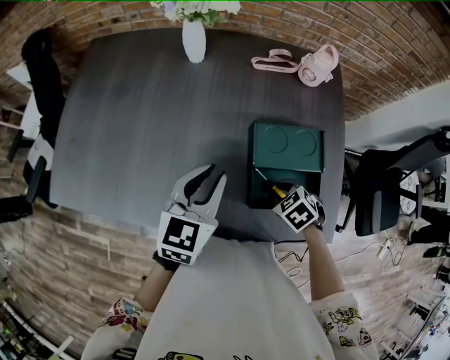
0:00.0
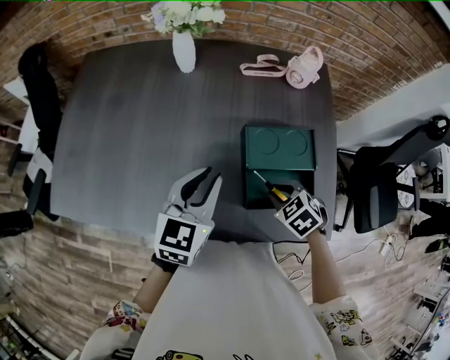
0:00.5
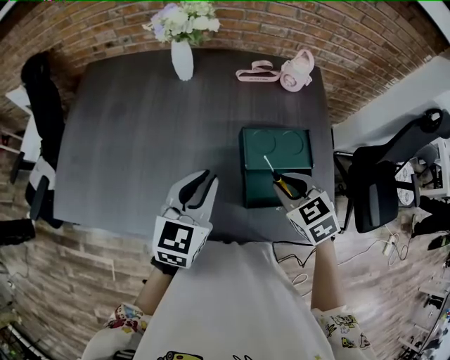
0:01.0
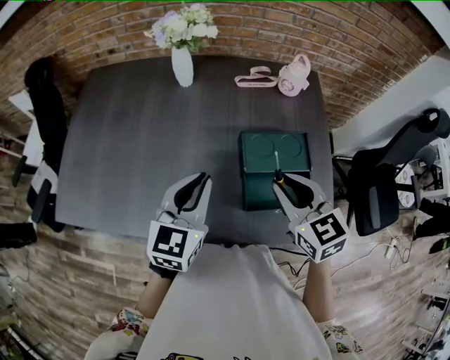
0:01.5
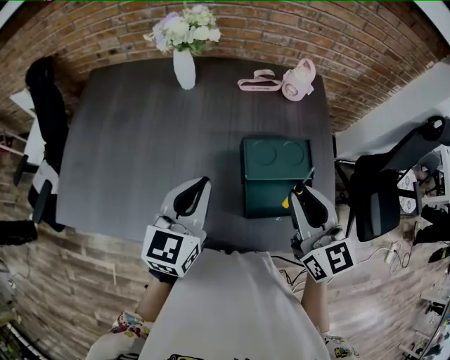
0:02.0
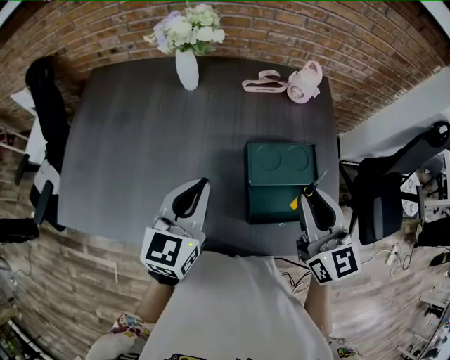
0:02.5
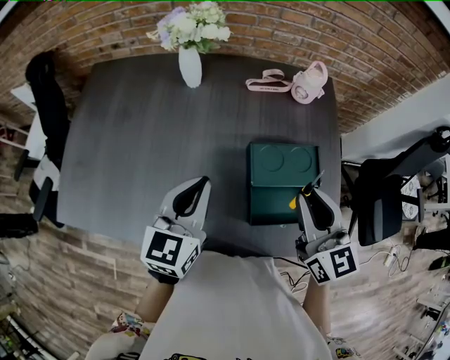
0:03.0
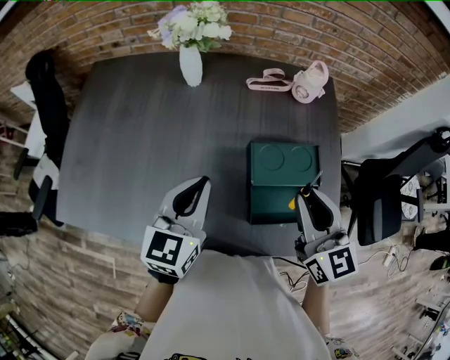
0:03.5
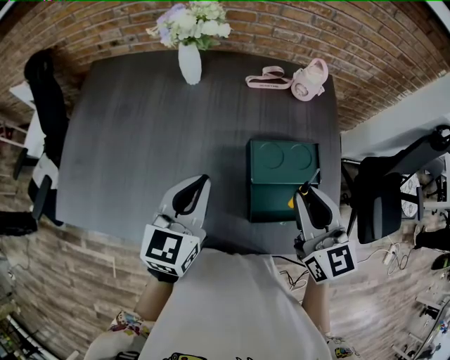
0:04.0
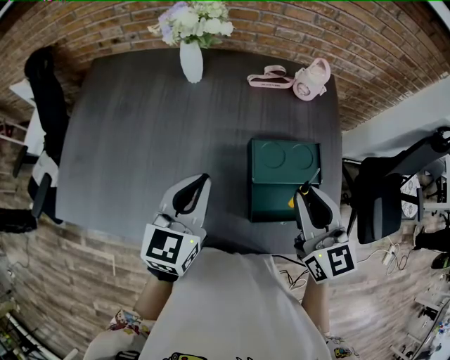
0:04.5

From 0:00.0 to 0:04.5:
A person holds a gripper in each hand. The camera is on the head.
From 0:00.0 to 0:02.0: The left gripper moves upward, roughly 5 cm. The right gripper heads upward, covering some 25 cm, and tilts its fingers approximately 60 degrees upward.
From 0:02.0 to 0:04.5: There are only small adjustments of the grippers.

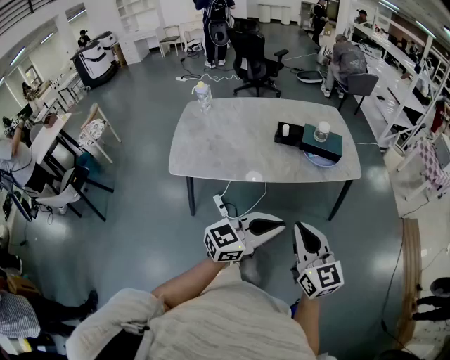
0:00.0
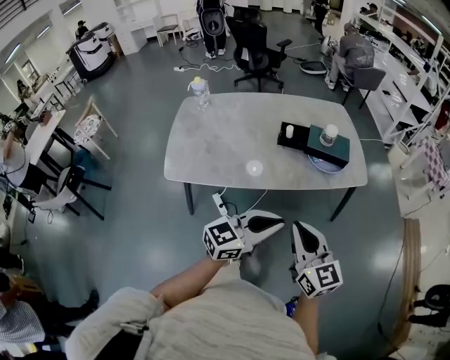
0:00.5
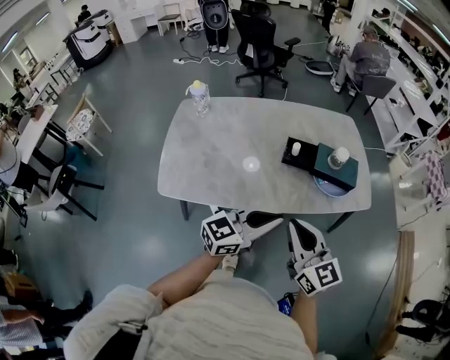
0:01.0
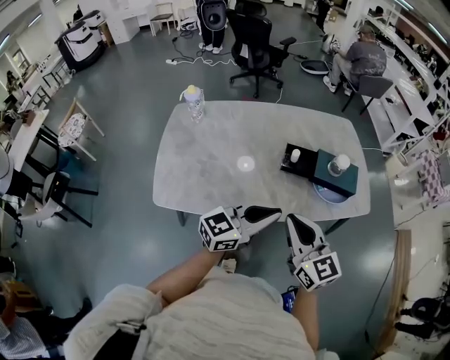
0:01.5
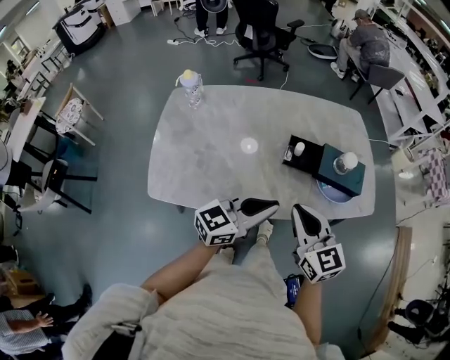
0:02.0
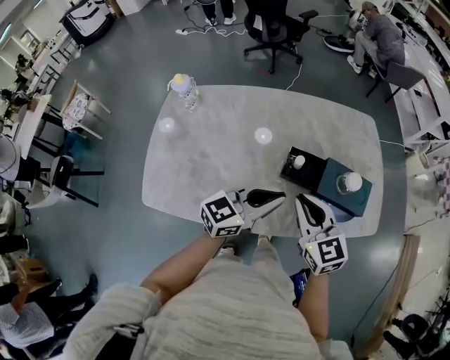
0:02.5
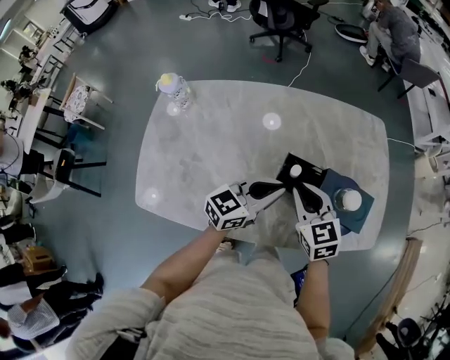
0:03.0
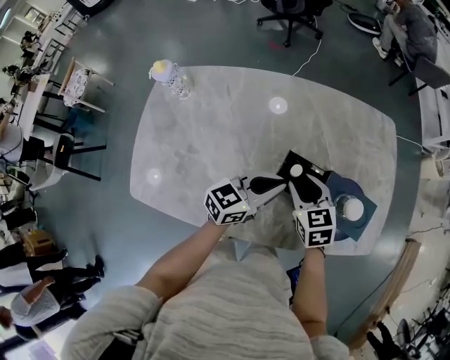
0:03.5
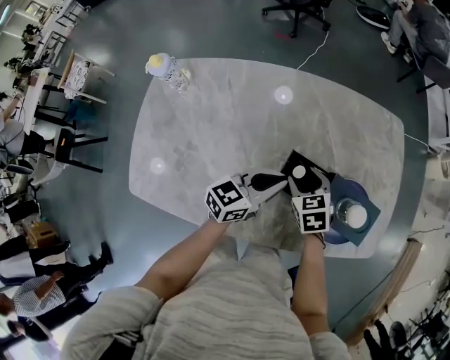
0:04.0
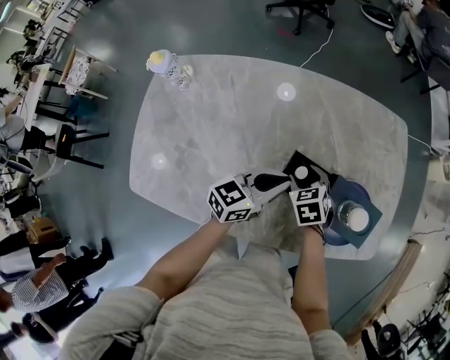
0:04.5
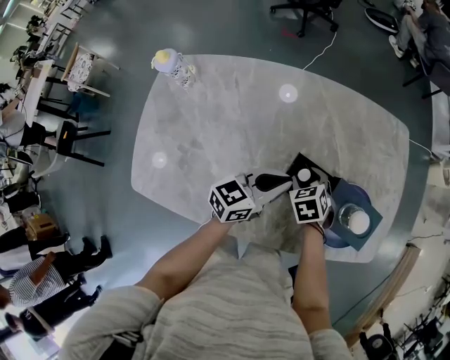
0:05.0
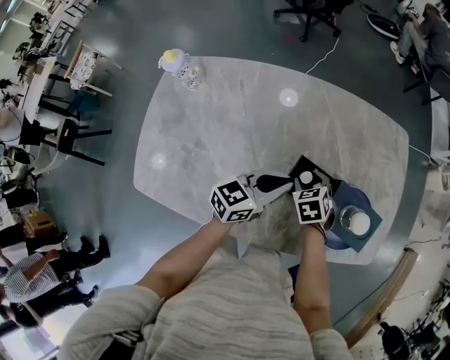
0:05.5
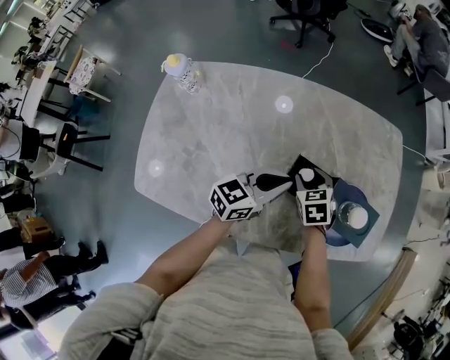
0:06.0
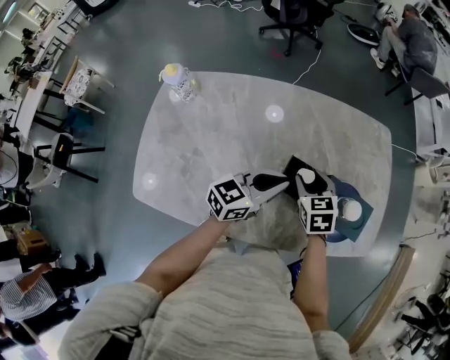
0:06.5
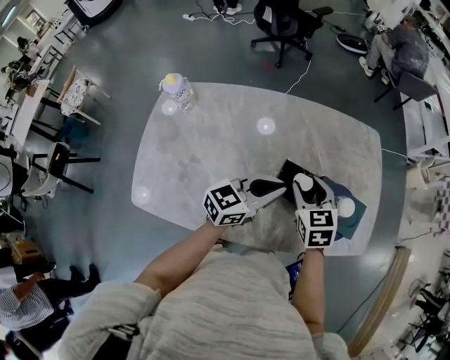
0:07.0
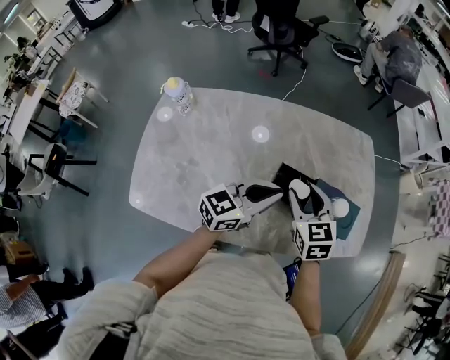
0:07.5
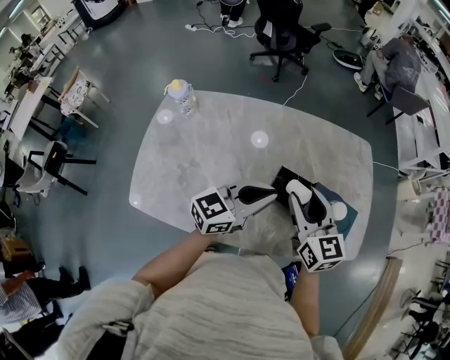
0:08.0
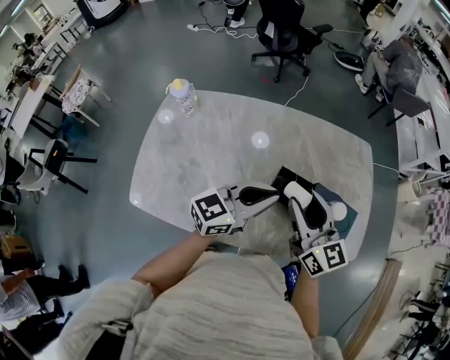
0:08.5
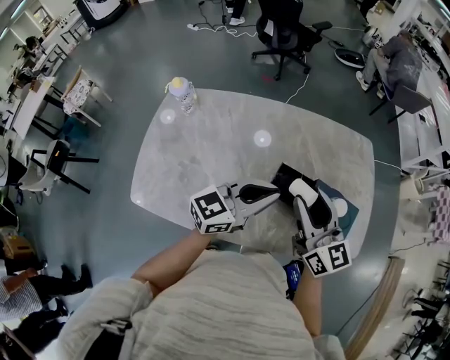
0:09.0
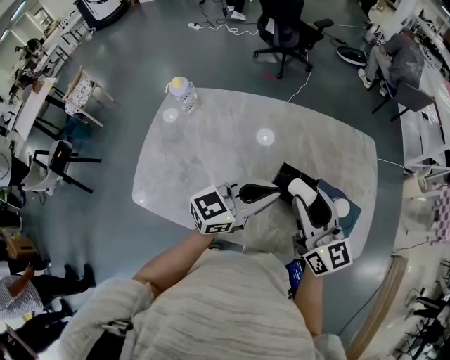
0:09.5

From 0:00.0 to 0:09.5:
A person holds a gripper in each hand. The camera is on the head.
From 0:00.0 to 0:02.0: The grippers both shift forward and to the left by approximately 35 cm.
From 0:02.0 to 0:04.0: Both grippers travel together forward and downward, some 35 cm. The left gripper turns by approximately 20 degrees. The right gripper tilts its fingers about 40 degrees downward, and opens.
From 0:04.0 to 0:05.5: The grippers move only a little.
From 0:05.5 to 0:07.5: The right gripper travels upward by roughly 20 cm, and tilts its fingers some 30 degrees upward. The left gripper is displaced upward and backward by approximately 15 cm.
From 0:07.5 to 0:09.5: The right gripper travels upward by some 10 cm, and tilts its fingers approximately 30 degrees upward.

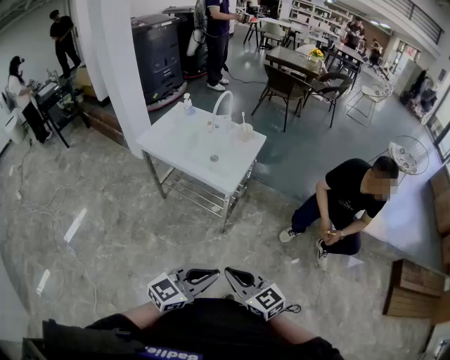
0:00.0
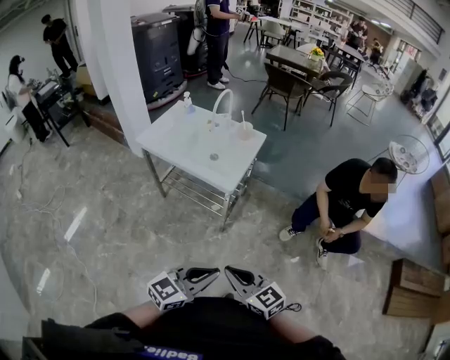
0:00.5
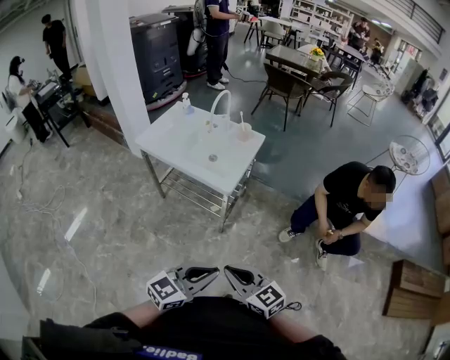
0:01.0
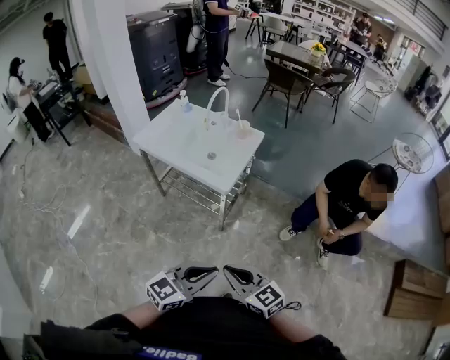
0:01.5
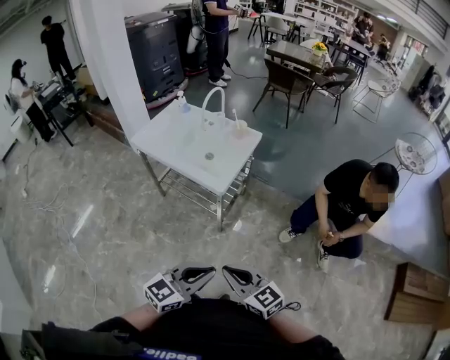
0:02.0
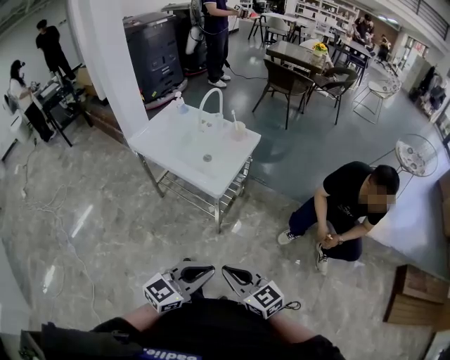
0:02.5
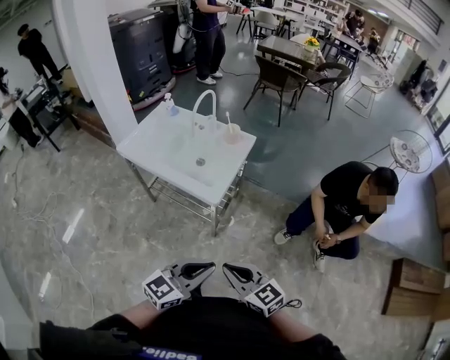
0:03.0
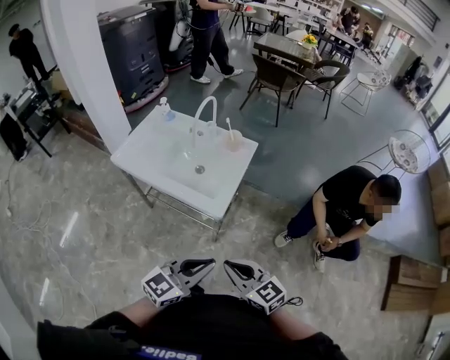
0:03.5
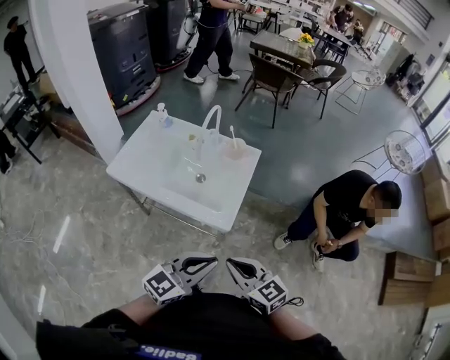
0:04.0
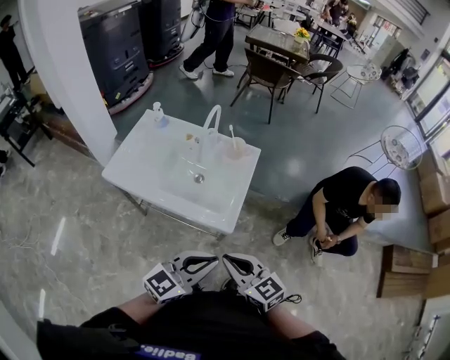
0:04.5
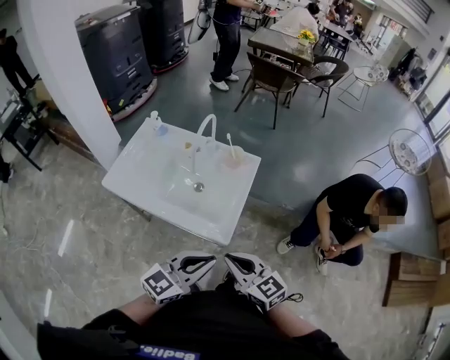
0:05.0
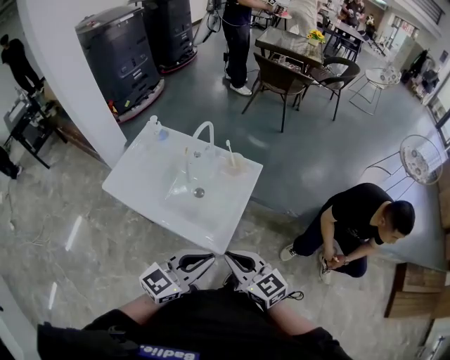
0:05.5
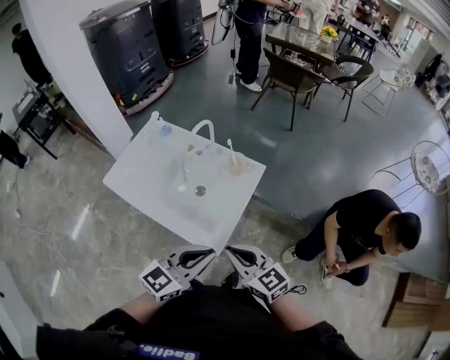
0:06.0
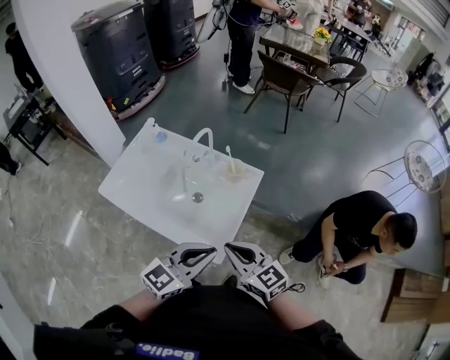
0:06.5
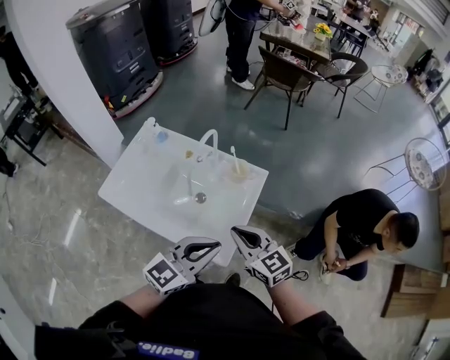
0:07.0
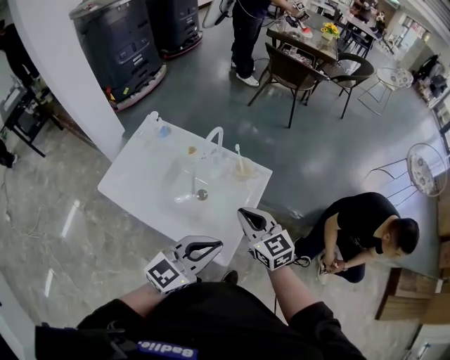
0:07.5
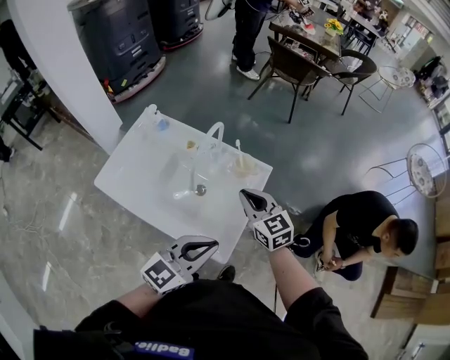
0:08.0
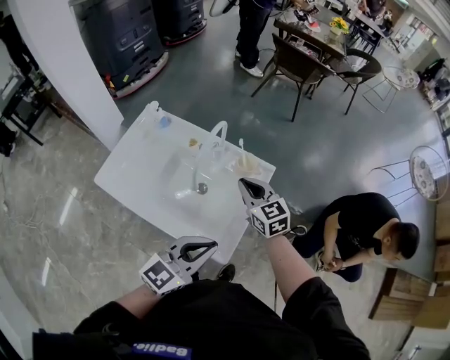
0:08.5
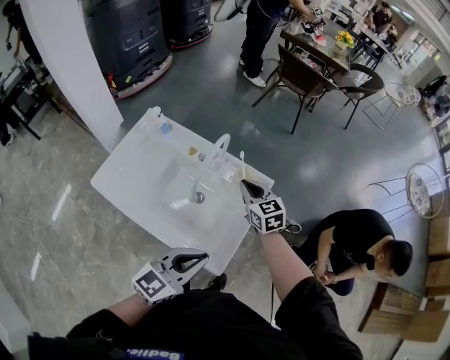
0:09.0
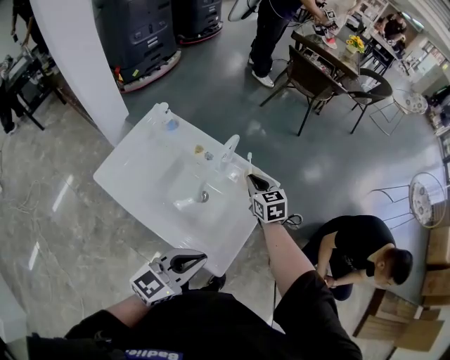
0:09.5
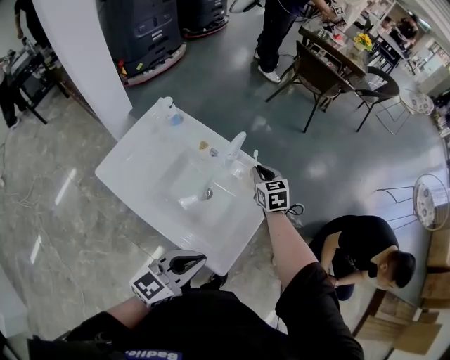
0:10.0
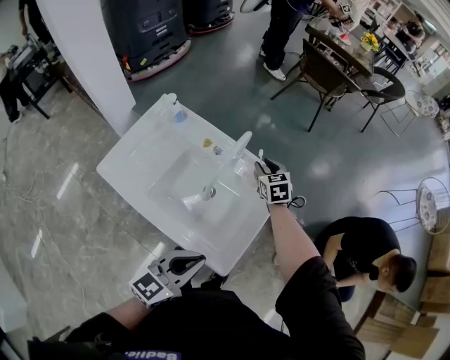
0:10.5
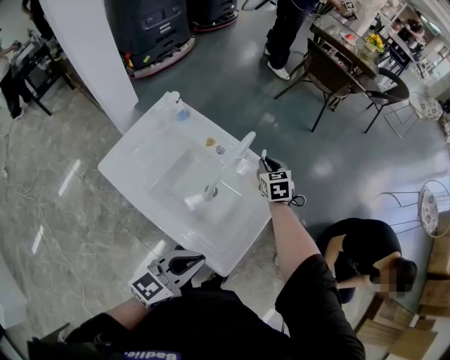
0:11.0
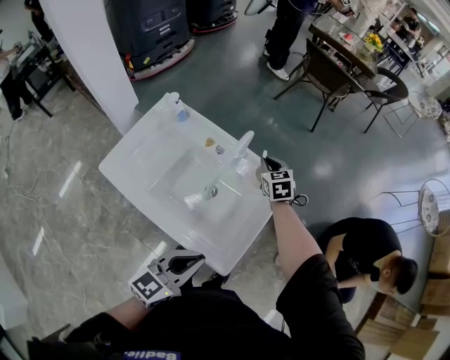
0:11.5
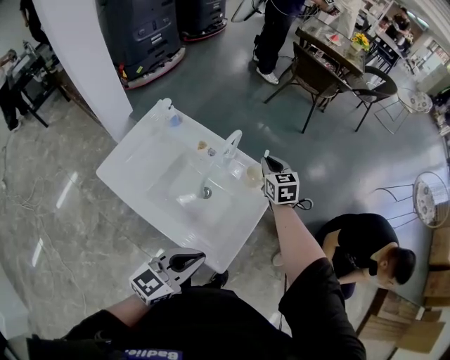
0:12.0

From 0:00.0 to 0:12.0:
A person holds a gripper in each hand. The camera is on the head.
From 0:00.0 to 0:02.0: Both grippers move to the right, some 5 cm.
From 0:02.0 to 0:04.0: The two grippers go roughly 25 cm forward and to the left.
From 0:04.0 to 0:06.0: The grippers both shift forward by about 15 cm.
From 0:06.0 to 0:08.0: The left gripper heads forward and to the left, covering approximately 10 cm; the right gripper is displaced forward by about 20 cm.
From 0:08.0 to 0:10.0: The right gripper moves forward and downward, approximately 20 cm. The left gripper shifts about 5 cm to the left.
From 0:10.0 to 0:12.0: The right gripper changes place by roughly 5 cm.

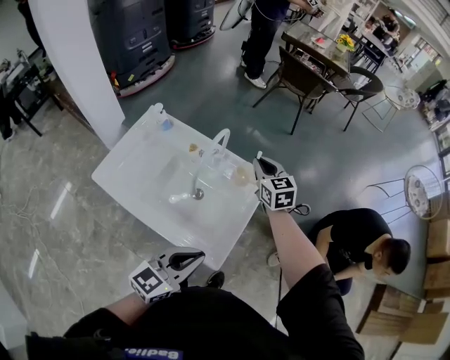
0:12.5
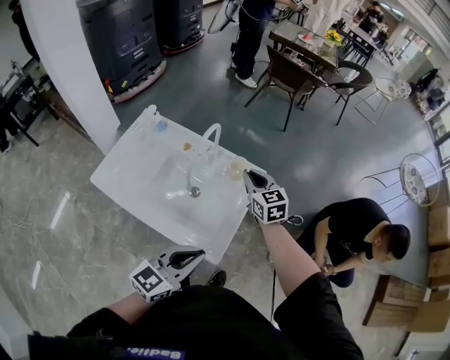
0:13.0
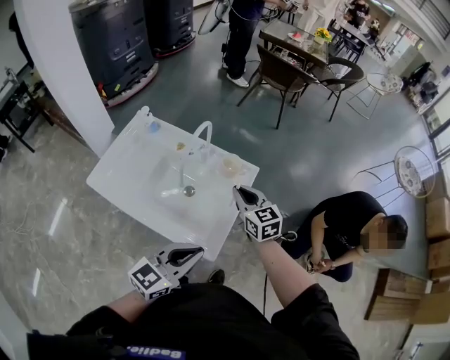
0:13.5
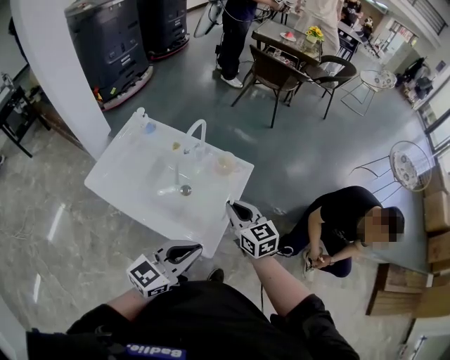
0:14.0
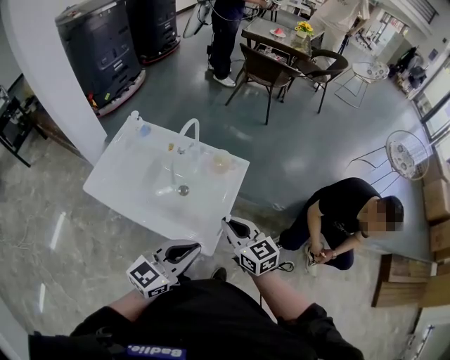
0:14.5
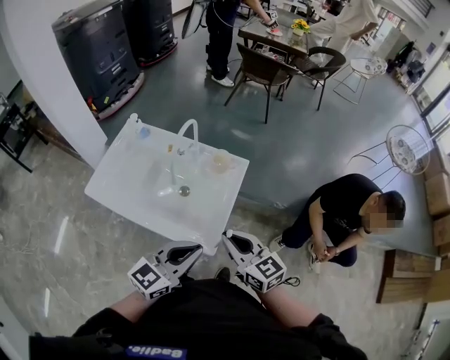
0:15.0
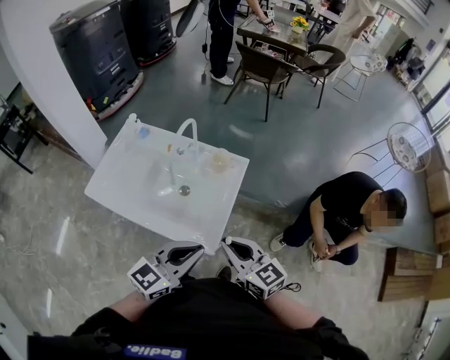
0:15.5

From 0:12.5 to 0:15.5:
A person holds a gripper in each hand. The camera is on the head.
From 0:12.5 to 0:14.0: The right gripper moves backward, about 20 cm. The left gripper changes place by roughly 5 cm.
From 0:14.0 to 0:15.5: The right gripper goes roughly 15 cm backward.
